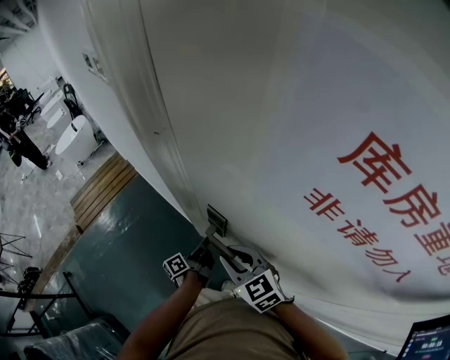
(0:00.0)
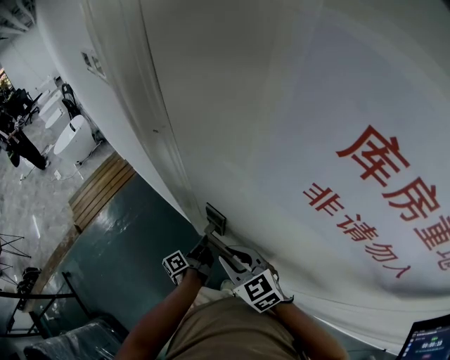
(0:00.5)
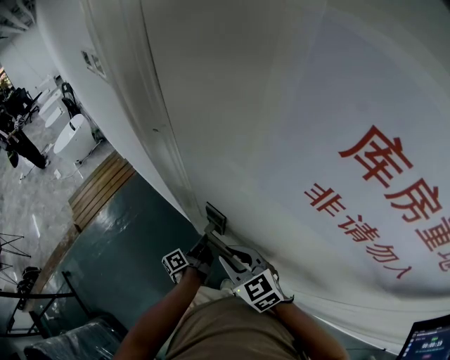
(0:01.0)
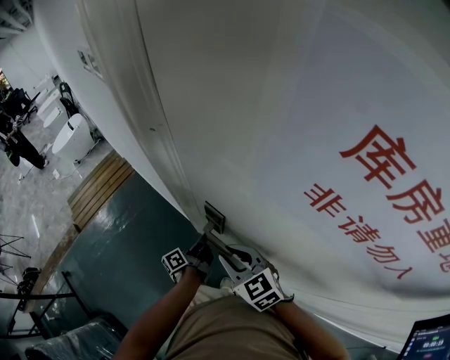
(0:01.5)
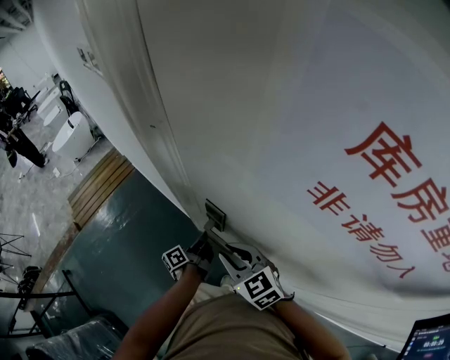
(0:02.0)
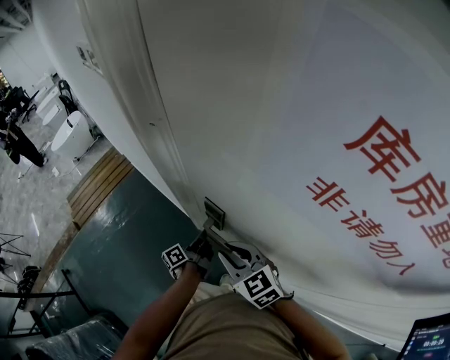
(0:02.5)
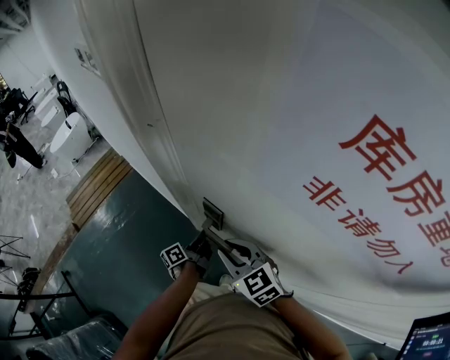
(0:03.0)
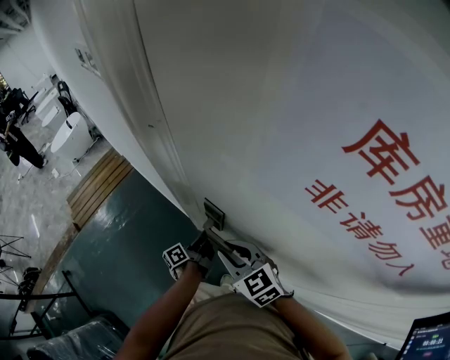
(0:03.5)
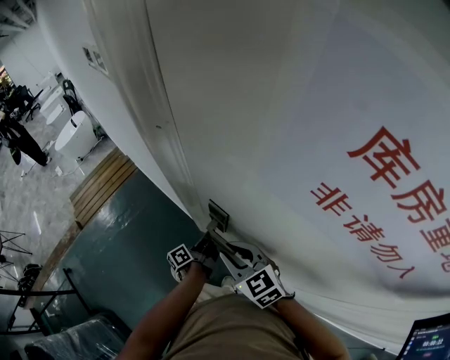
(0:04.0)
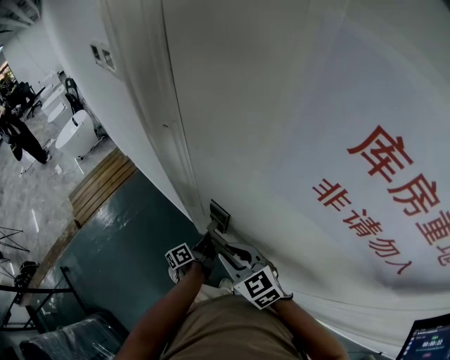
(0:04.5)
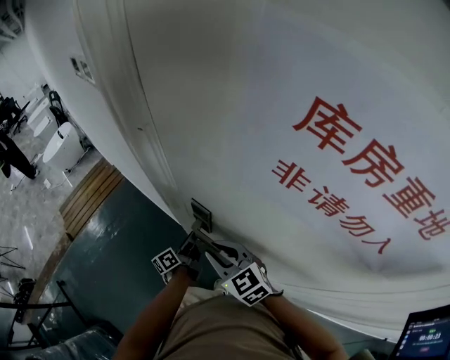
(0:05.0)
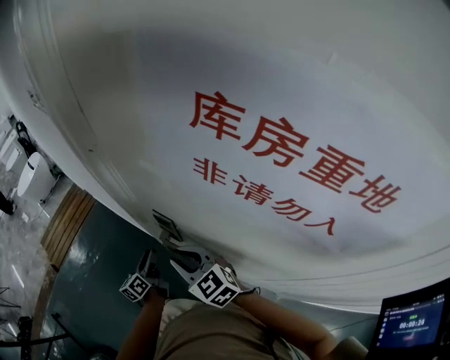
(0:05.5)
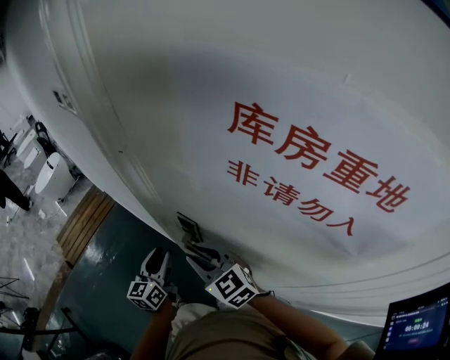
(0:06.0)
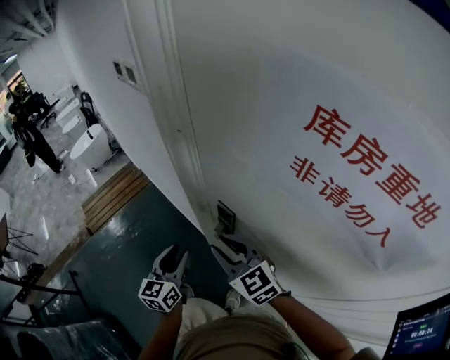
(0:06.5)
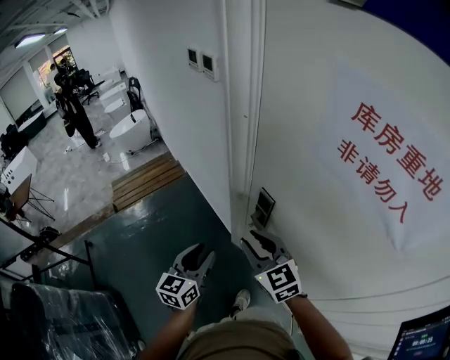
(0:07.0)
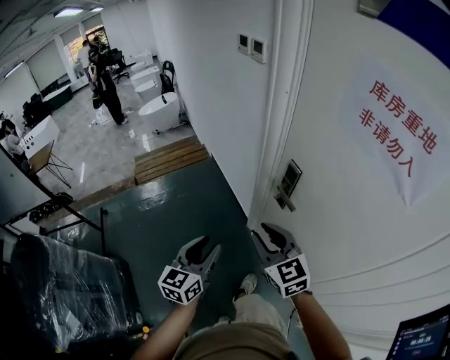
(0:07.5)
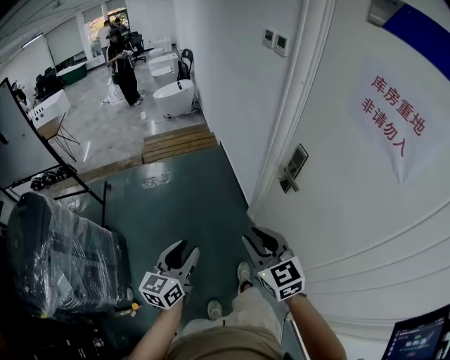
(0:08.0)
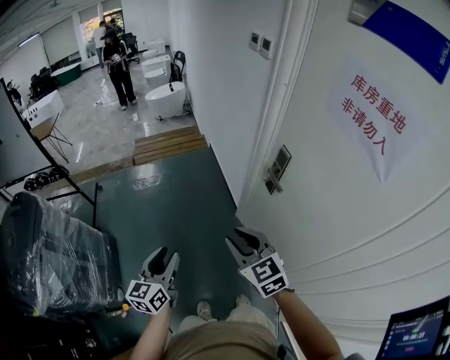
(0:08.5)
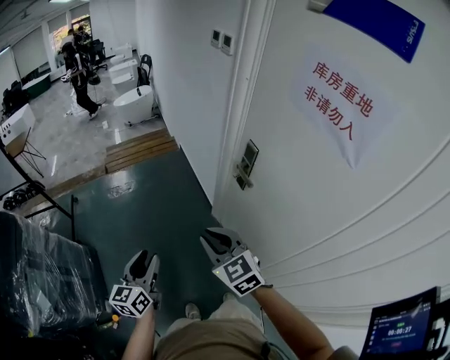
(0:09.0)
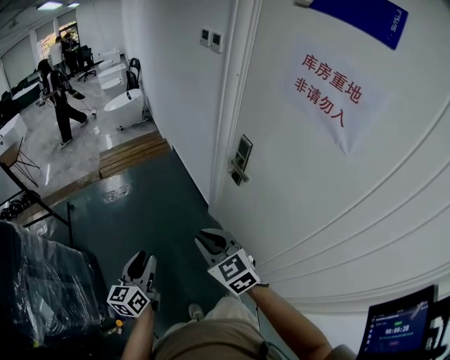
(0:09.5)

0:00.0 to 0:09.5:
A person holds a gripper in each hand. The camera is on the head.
0:00.0 to 0:02.0: The two grippers keep their place.
0:02.0 to 0:04.0: Both grippers stay about where they are.
0:04.0 to 0:05.5: The left gripper moves to the left, about 10 cm, rotates about 40 degrees, and opens up.
0:05.5 to 0:07.5: The right gripper travels backward, to the left and upward by about 20 cm. Meanwhile the left gripper is displaced backward, upward and to the left by some 40 cm, and rotates approximately 40 degrees.
0:07.5 to 0:09.5: Both grippers move backward and to the left, approximately 15 cm.

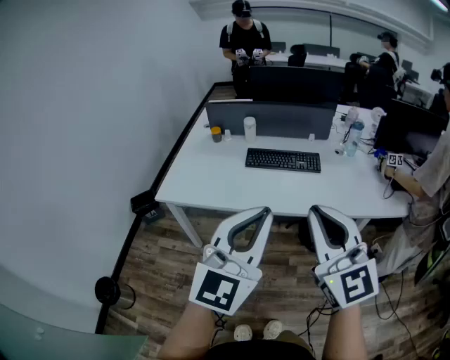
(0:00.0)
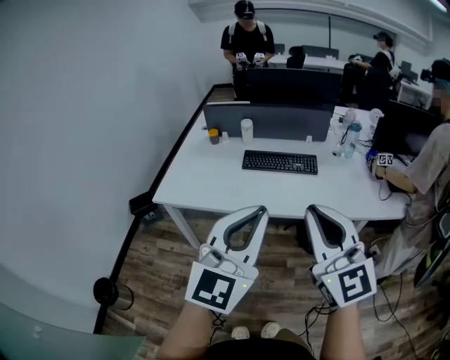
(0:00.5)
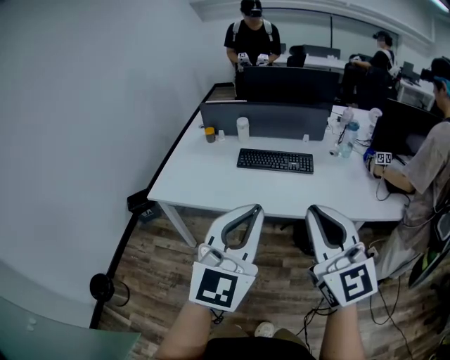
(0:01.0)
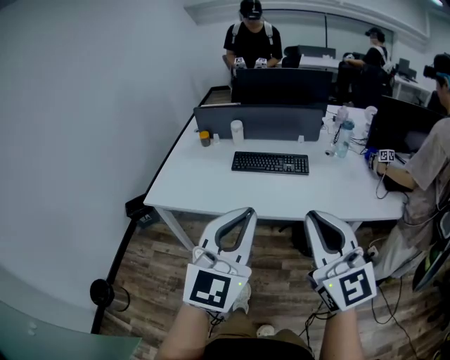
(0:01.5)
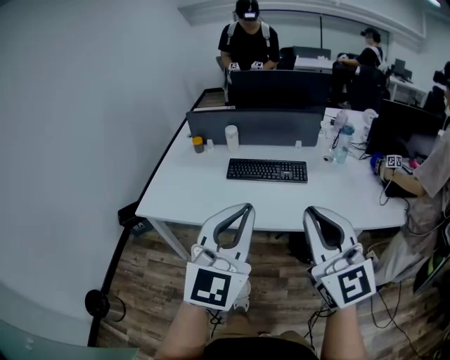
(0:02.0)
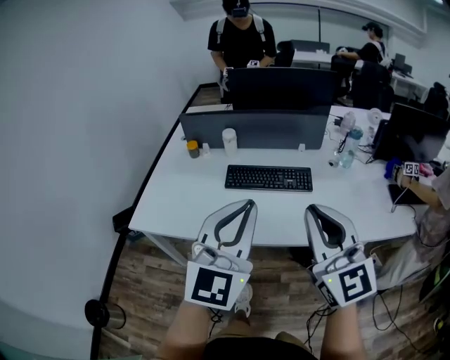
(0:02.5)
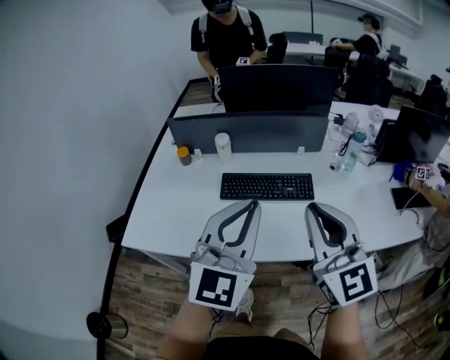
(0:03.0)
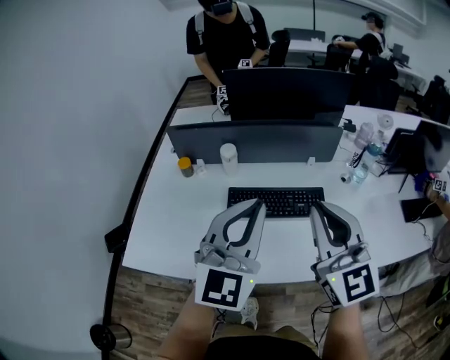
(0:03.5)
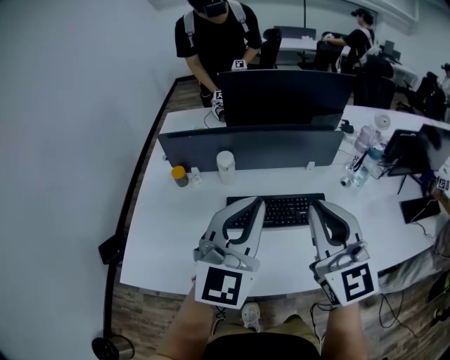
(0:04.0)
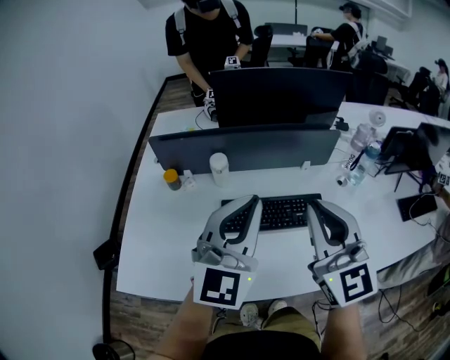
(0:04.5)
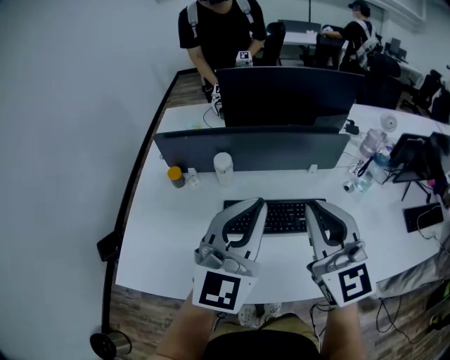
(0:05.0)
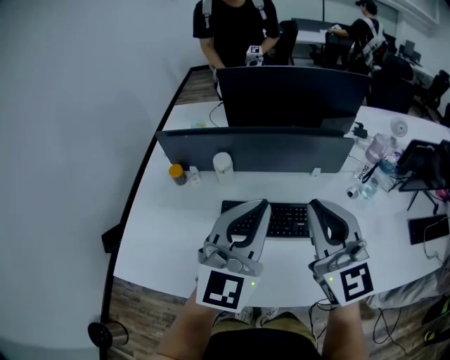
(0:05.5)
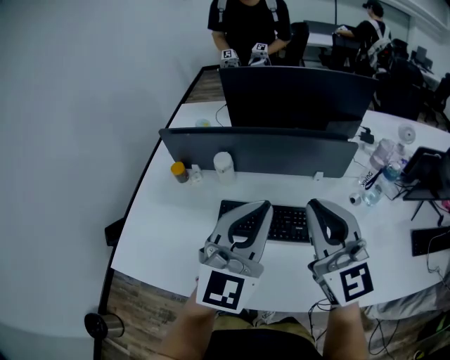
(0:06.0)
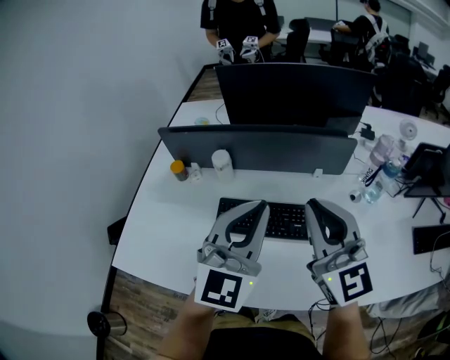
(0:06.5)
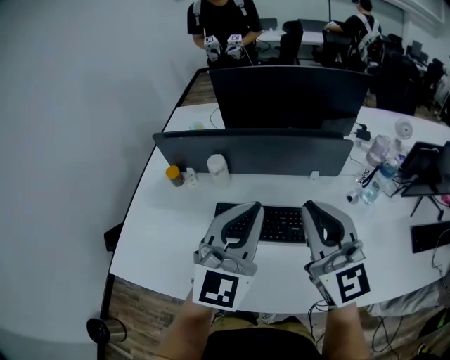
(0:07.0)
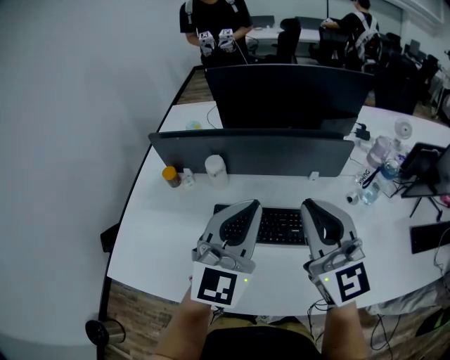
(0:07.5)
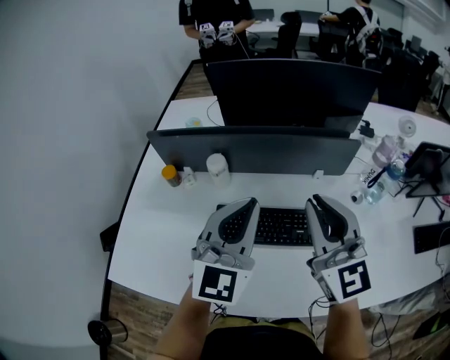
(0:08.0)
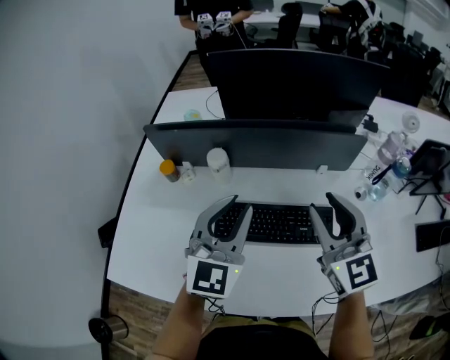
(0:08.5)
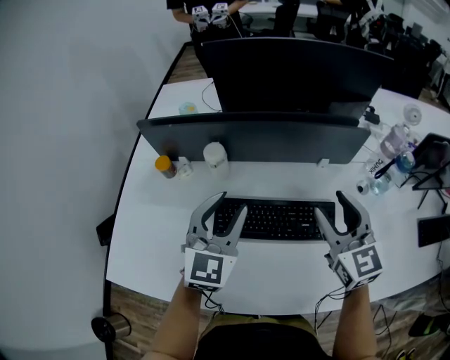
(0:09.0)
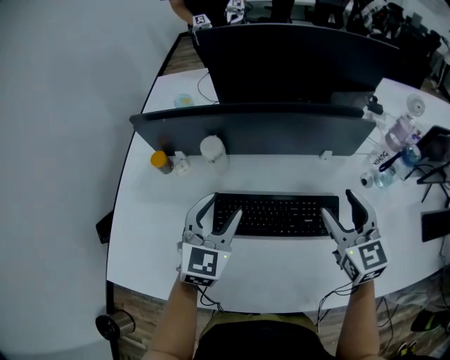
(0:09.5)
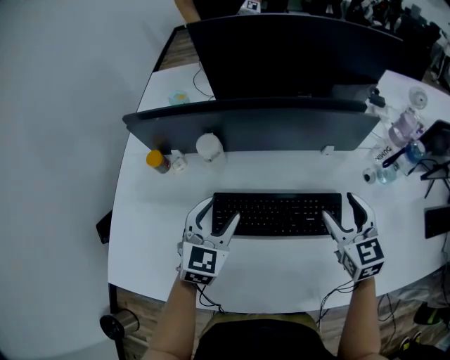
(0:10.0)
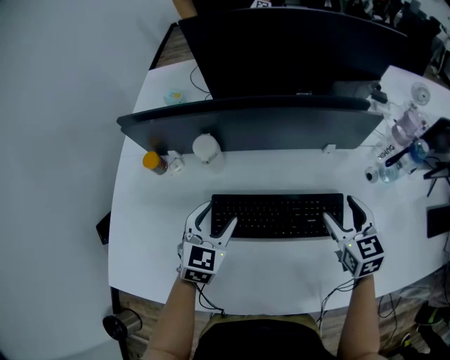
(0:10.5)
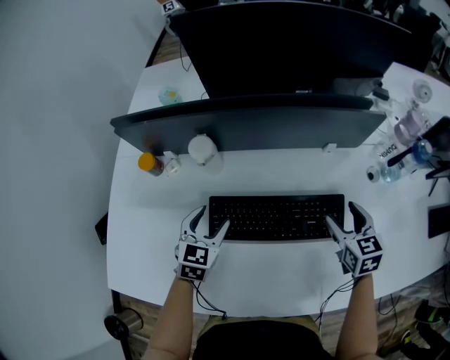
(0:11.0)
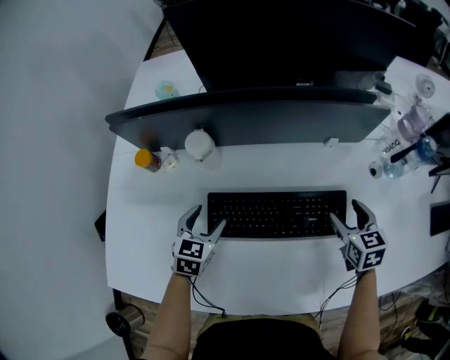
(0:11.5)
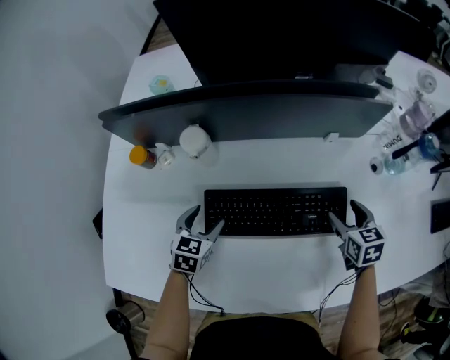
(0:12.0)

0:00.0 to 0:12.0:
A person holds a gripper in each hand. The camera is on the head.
0:00.0 to 0:02.0: The right gripper heads to the right and forward, covering approximately 10 cm; the left gripper goes some 10 cm forward.
0:02.0 to 0:04.0: The grippers both shift forward by some 35 cm.
0:04.0 to 0:06.0: The right gripper heads forward and to the right, covering about 10 cm, while the left gripper shifts roughly 10 cm to the right and forward.
0:06.0 to 0:08.0: The two grippers go approximately 5 cm forward.
0:08.0 to 0:10.0: The right gripper is displaced downward by some 20 cm, tilts its fingers roughly 30 degrees downward, and opens. Meanwhile the left gripper goes about 25 cm downward and to the left, rotates about 30 degrees, and opens.
0:10.0 to 0:12.0: The two grippers go roughly 15 cm downward. The right gripper rotates approximately 30 degrees. Meanwhile the left gripper rotates roughly 30 degrees.

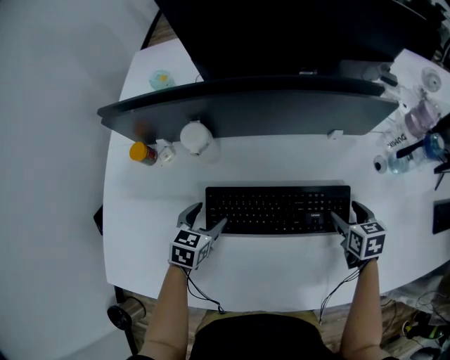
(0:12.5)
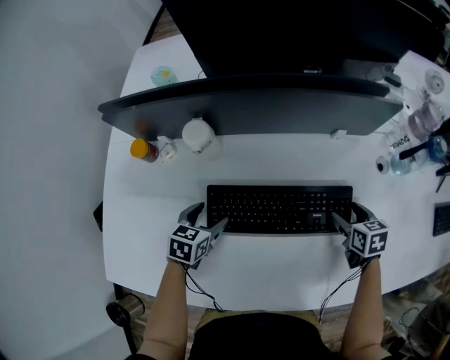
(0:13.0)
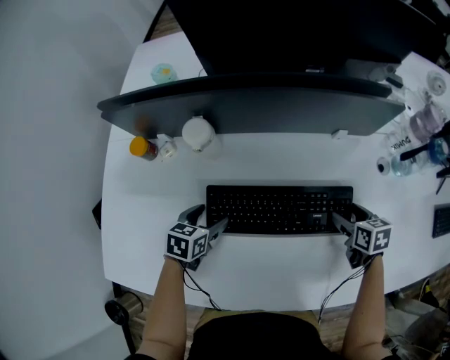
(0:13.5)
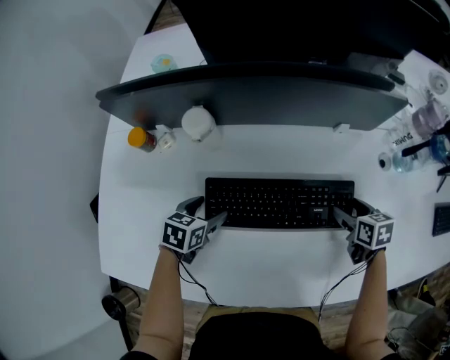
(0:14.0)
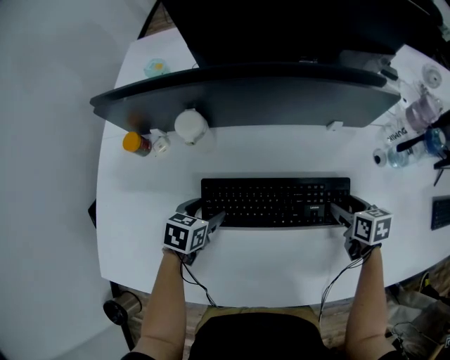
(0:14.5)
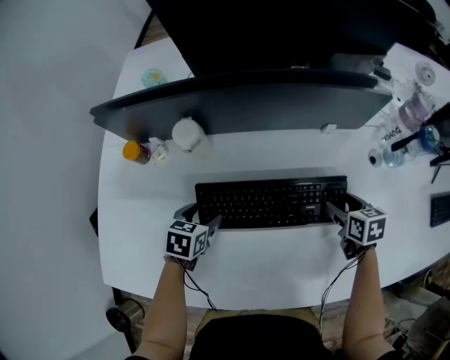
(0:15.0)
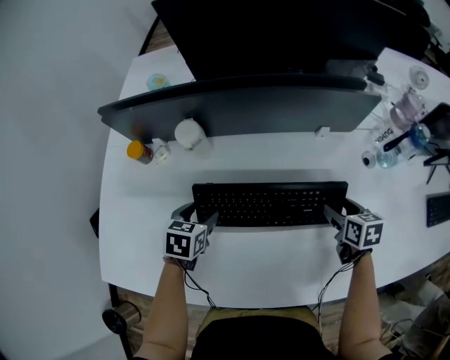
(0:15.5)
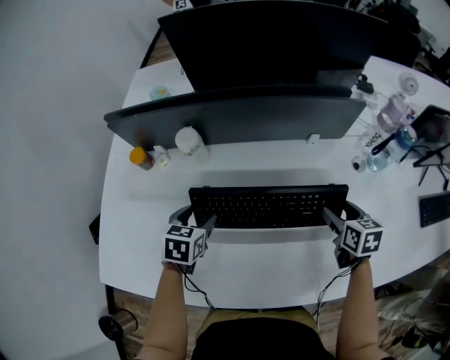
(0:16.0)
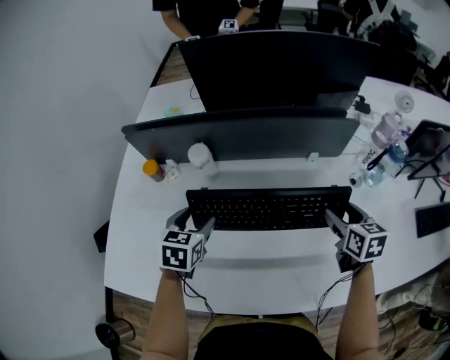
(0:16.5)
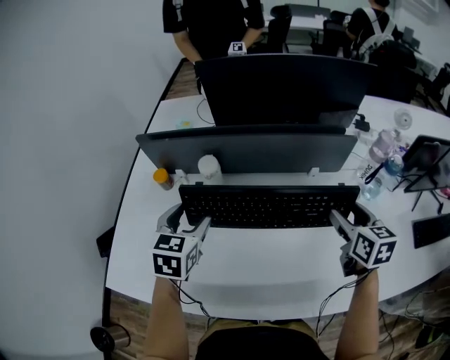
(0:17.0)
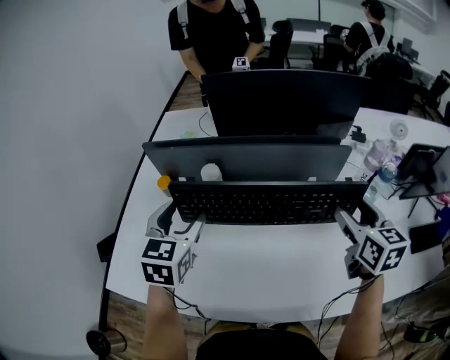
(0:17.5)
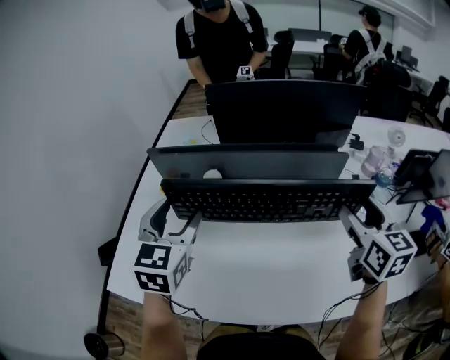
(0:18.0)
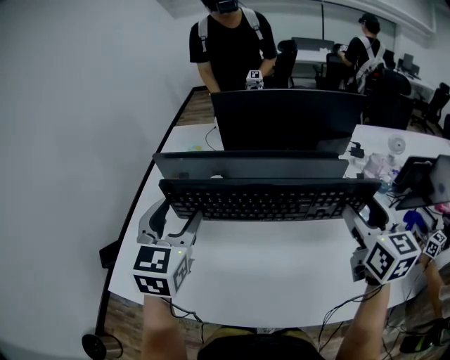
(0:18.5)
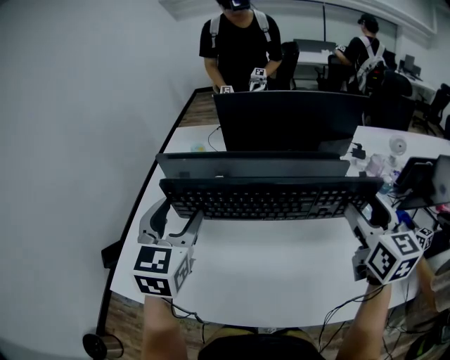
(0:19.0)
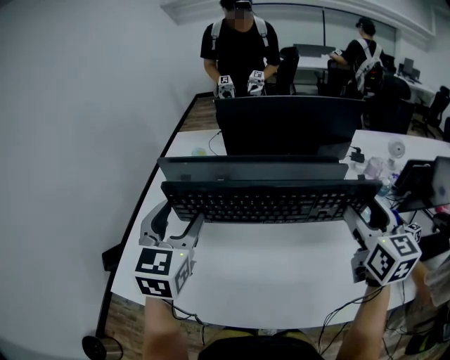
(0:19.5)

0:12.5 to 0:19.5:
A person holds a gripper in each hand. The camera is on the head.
0:12.5 to 0:14.5: The grippers move only a little.
0:14.5 to 0:16.0: Both grippers travel together upward, approximately 10 cm.
0:16.0 to 0:17.5: Both grippers move upward, roughly 25 cm. The left gripper turns by about 30 degrees. Meanwhile the right gripper changes its angle by approximately 20 degrees.
0:17.5 to 0:19.5: The two grippers go roughly 10 cm upward.
